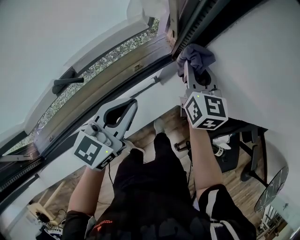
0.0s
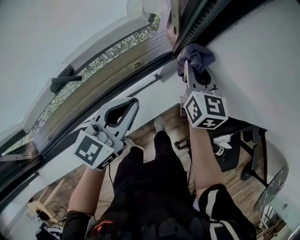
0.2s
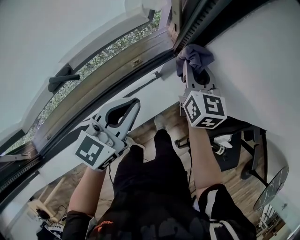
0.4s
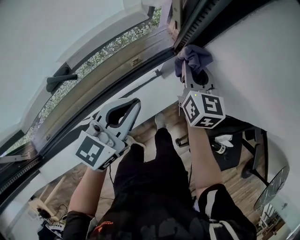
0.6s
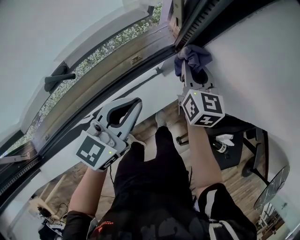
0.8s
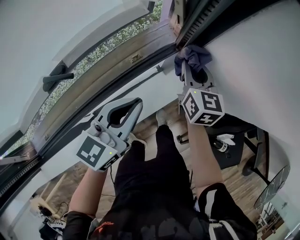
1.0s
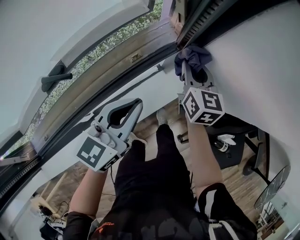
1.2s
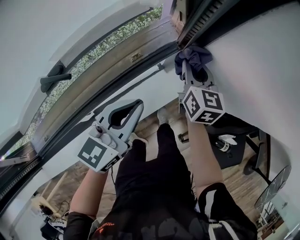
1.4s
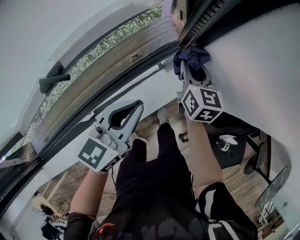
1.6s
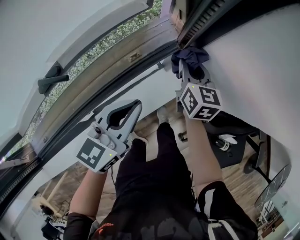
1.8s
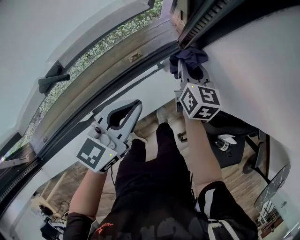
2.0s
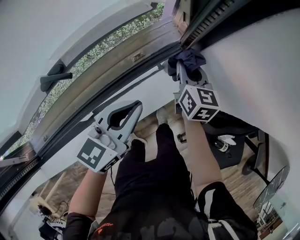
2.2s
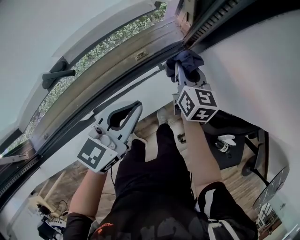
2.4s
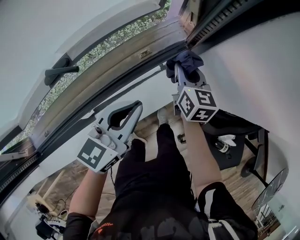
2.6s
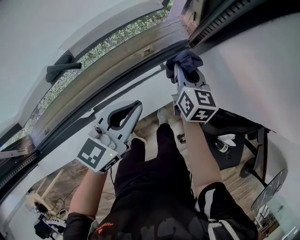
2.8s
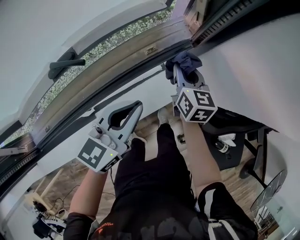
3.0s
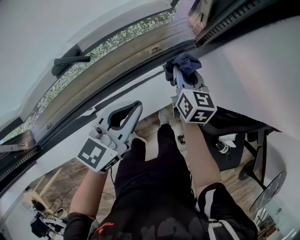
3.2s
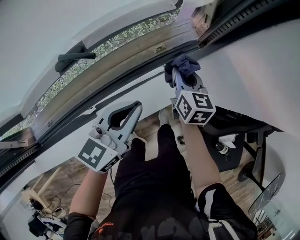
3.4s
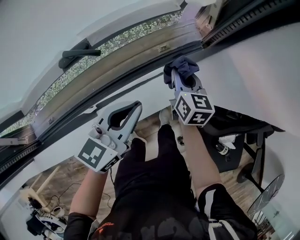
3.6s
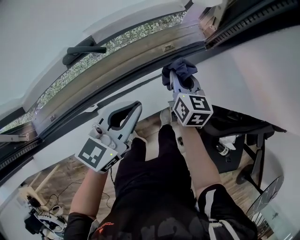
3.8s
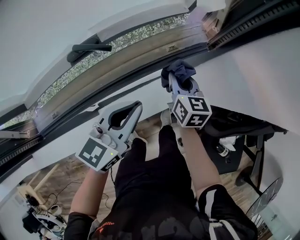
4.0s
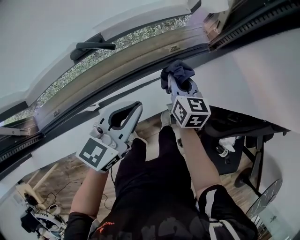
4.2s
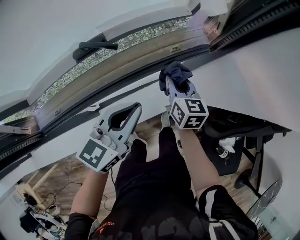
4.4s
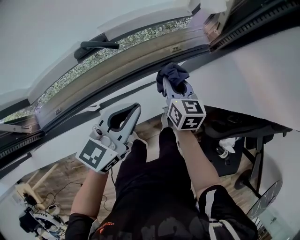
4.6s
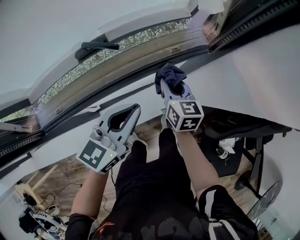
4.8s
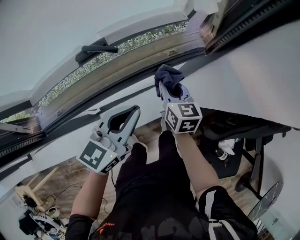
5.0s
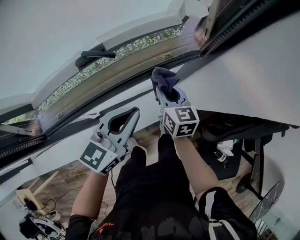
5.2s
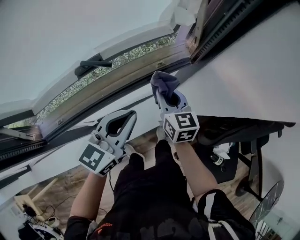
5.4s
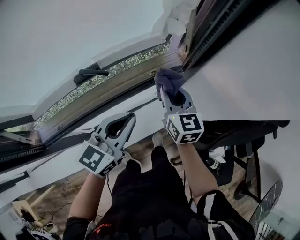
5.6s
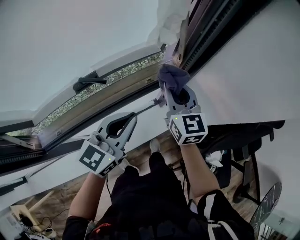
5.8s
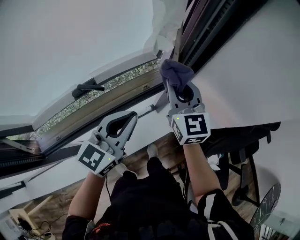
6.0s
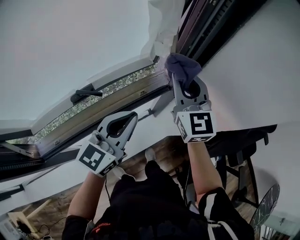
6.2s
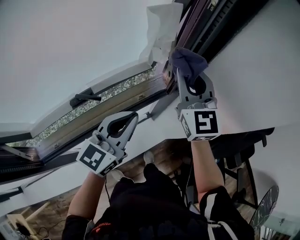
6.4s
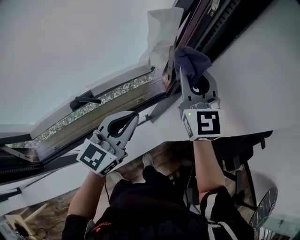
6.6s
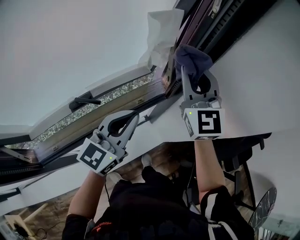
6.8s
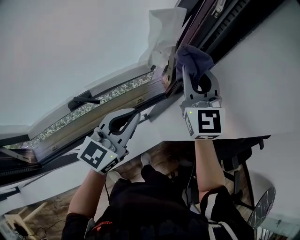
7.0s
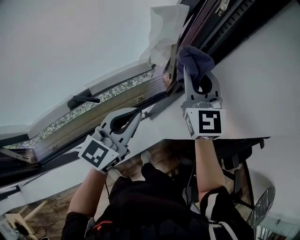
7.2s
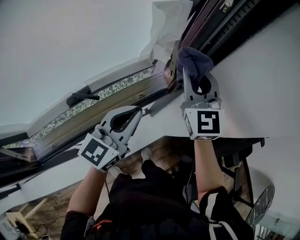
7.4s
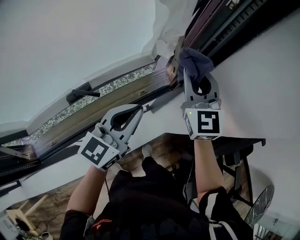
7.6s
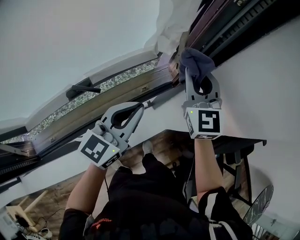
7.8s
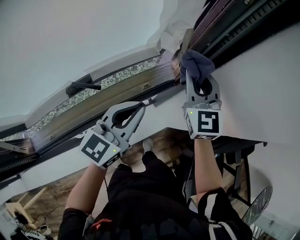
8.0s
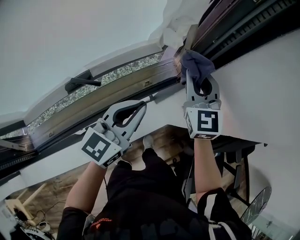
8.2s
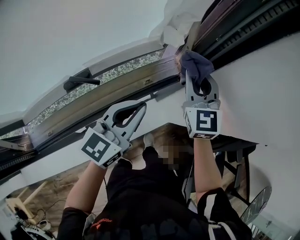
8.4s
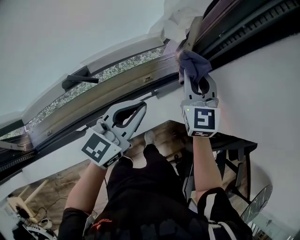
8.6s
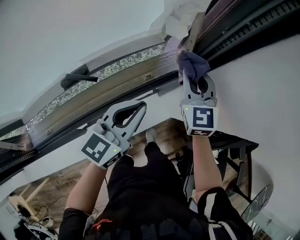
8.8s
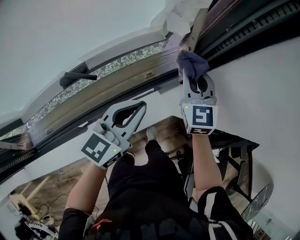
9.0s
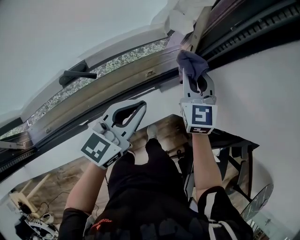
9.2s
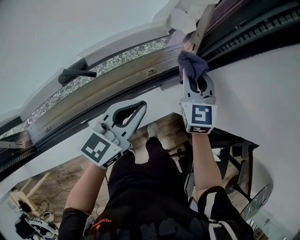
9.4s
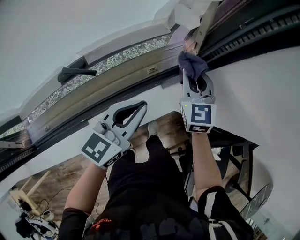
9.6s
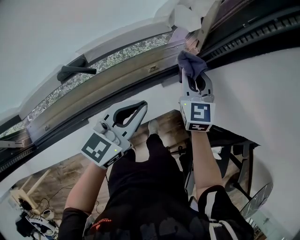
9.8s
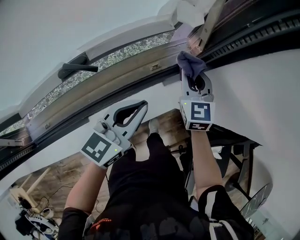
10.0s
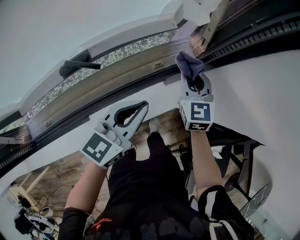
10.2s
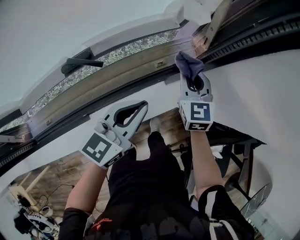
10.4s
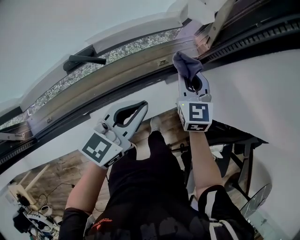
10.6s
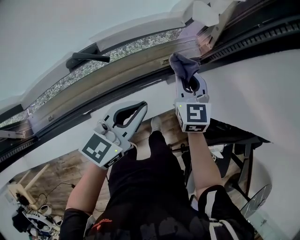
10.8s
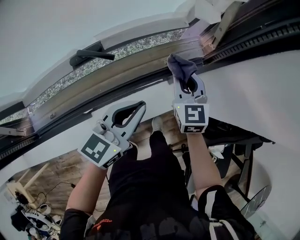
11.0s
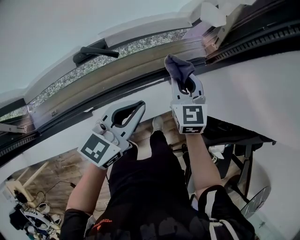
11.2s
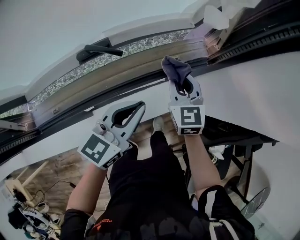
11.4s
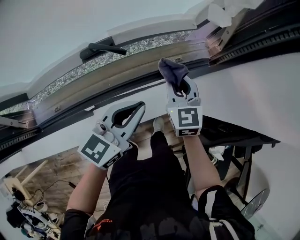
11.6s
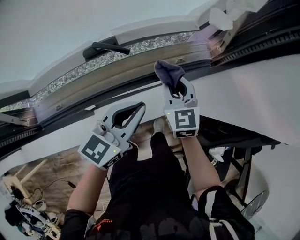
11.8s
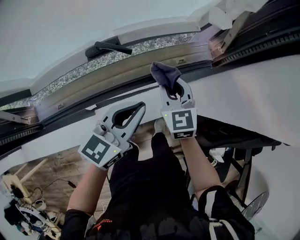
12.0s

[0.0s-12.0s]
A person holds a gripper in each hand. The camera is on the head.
0.0s to 1.6s: The left gripper goes some 10 cm downward. The right gripper shifts about 15 cm downward.
1.6s to 3.0s: The right gripper heads to the left, covering approximately 5 cm.
3.0s to 4.4s: Both grippers move to the left and backward, some 10 cm.
4.4s to 6.0s: The left gripper travels upward and to the right by about 15 cm. Meanwhile the right gripper travels upward by some 25 cm, and turns by roughly 30 degrees.
6.0s to 7.6s: Both grippers move forward, about 5 cm.
7.6s to 9.0s: The right gripper is displaced downward by roughly 15 cm, while the left gripper moves downward, approximately 10 cm.
9.0s to 10.4s: The right gripper is displaced downward by roughly 5 cm.
10.4s to 12.0s: The right gripper travels to the left and backward by some 15 cm, while the left gripper moves to the left and backward, some 10 cm.

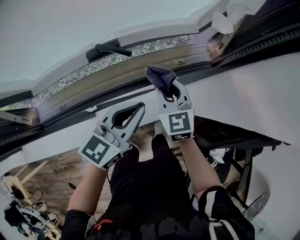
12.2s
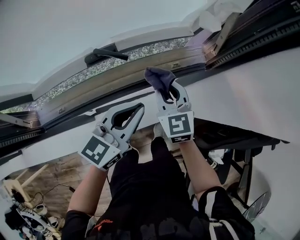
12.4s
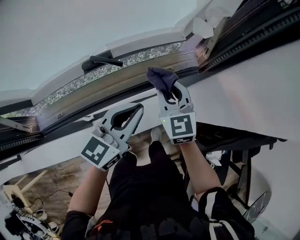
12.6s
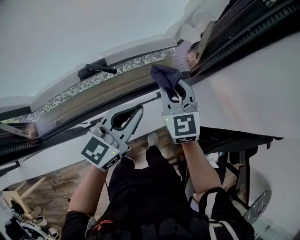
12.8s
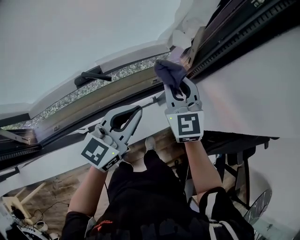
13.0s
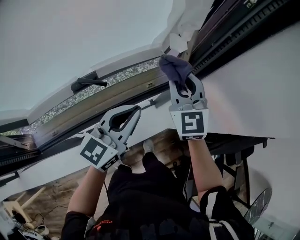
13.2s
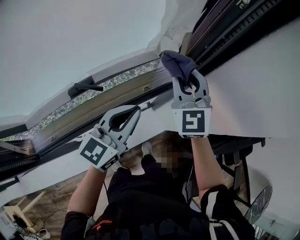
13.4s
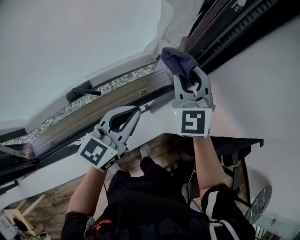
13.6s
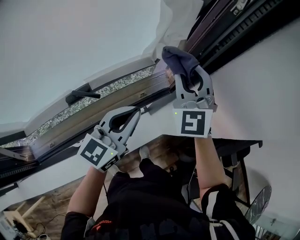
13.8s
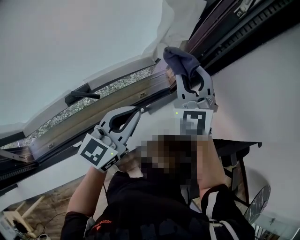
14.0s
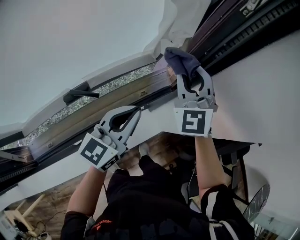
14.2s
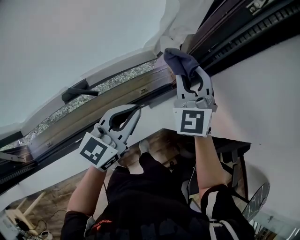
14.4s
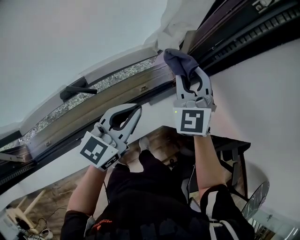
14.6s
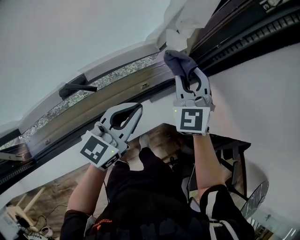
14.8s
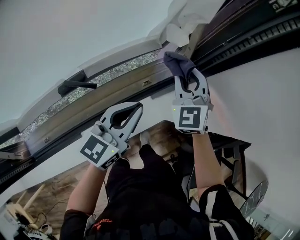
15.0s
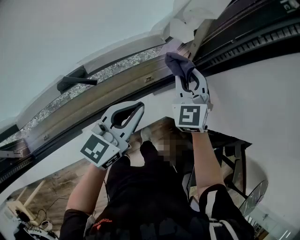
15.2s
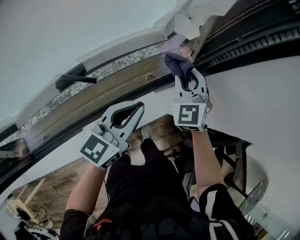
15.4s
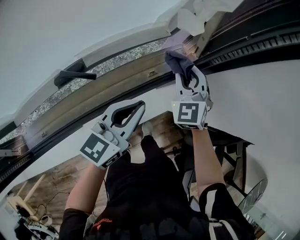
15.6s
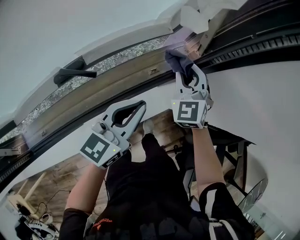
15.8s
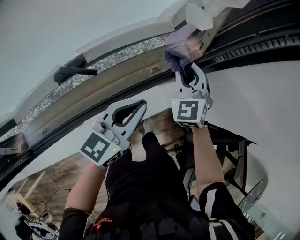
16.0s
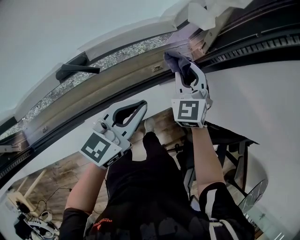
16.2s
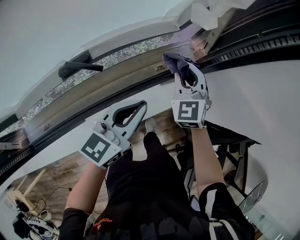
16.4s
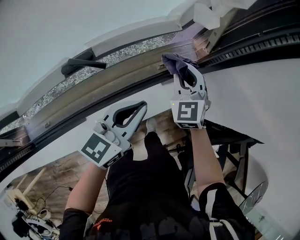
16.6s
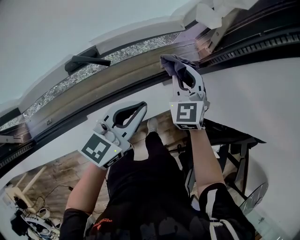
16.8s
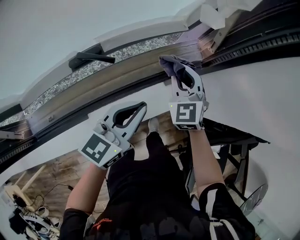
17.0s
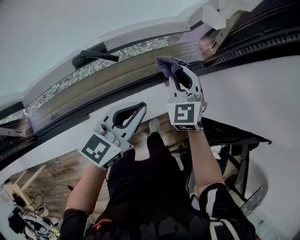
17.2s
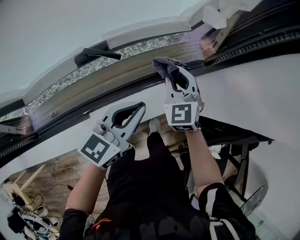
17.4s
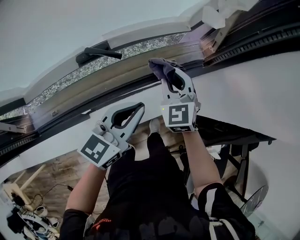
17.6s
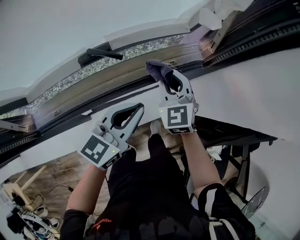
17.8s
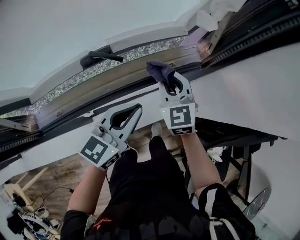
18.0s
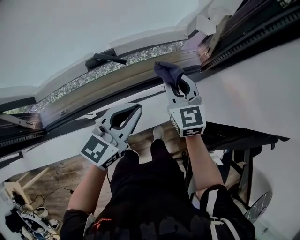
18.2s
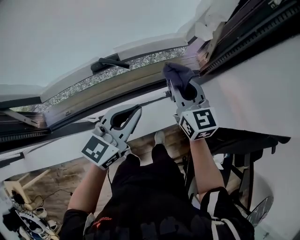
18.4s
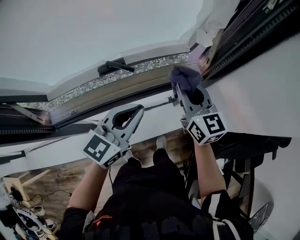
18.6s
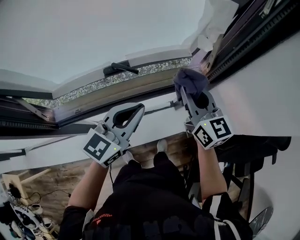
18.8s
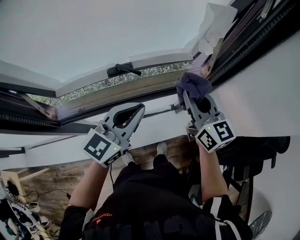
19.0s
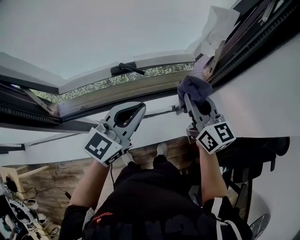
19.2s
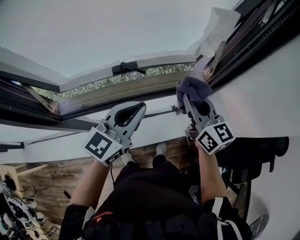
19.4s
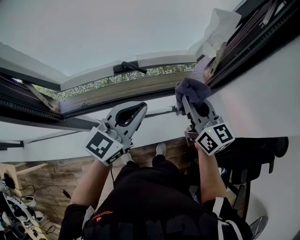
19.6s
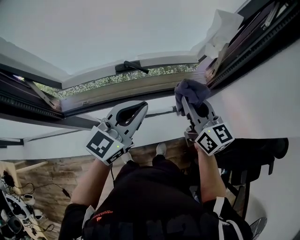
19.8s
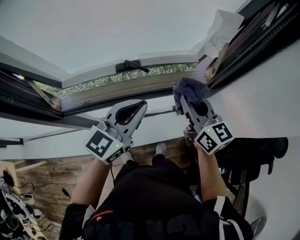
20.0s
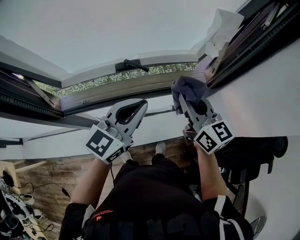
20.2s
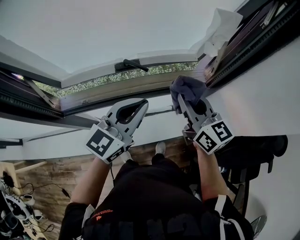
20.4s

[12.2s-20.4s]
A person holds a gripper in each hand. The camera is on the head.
12.2s to 13.8s: The left gripper is displaced upward, forward and to the right by some 15 cm, while the right gripper moves upward, to the right and forward, approximately 30 cm, and swivels roughly 40 degrees.
13.8s to 15.4s: The right gripper shifts approximately 20 cm downward. Meanwhile the left gripper travels downward by about 10 cm.
15.4s to 17.2s: The right gripper moves backward and to the left, about 10 cm; the left gripper heads backward, covering about 5 cm.
17.2s to 18.8s: The right gripper heads upward and backward, covering roughly 20 cm, and changes its angle by about 40 degrees; the left gripper shifts approximately 10 cm upward.
18.8s to 20.4s: The right gripper goes roughly 5 cm backward.

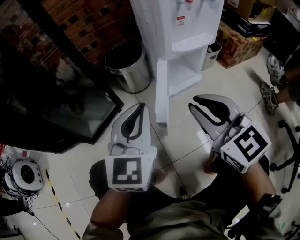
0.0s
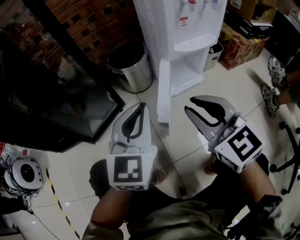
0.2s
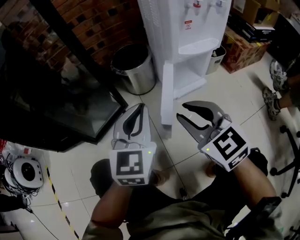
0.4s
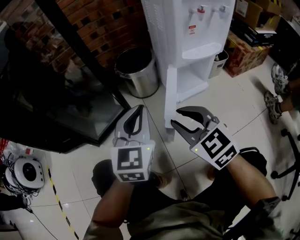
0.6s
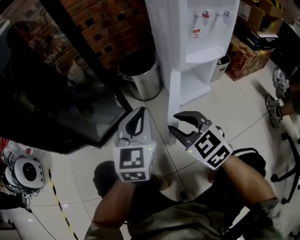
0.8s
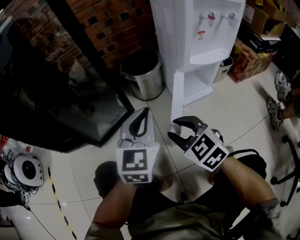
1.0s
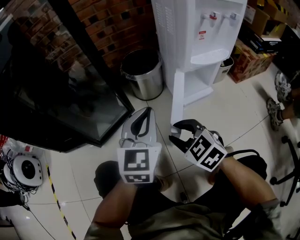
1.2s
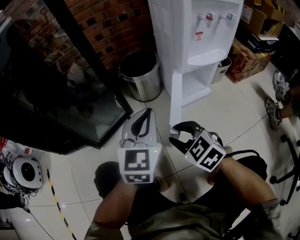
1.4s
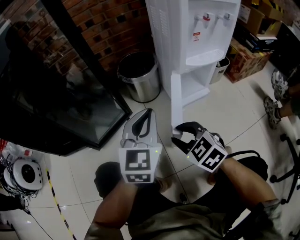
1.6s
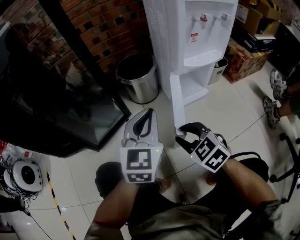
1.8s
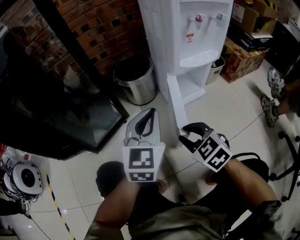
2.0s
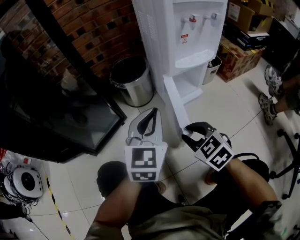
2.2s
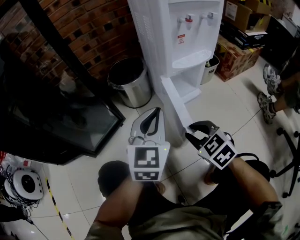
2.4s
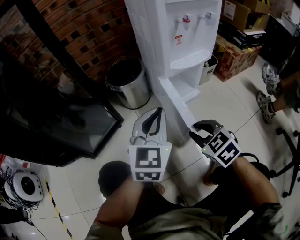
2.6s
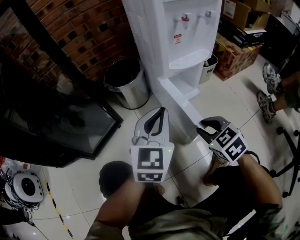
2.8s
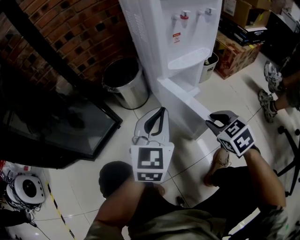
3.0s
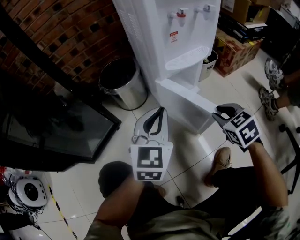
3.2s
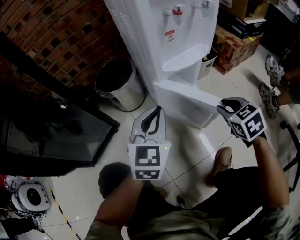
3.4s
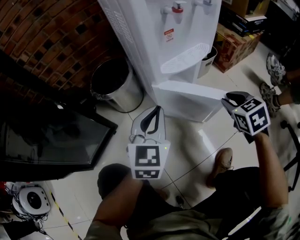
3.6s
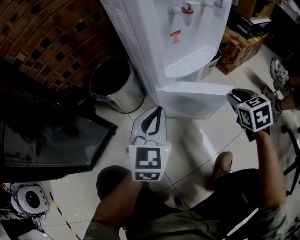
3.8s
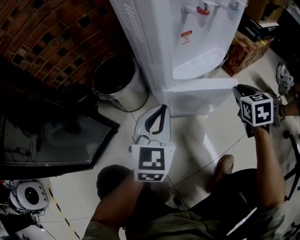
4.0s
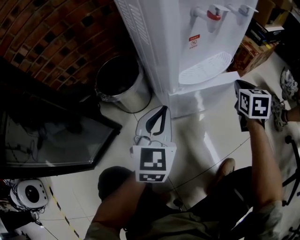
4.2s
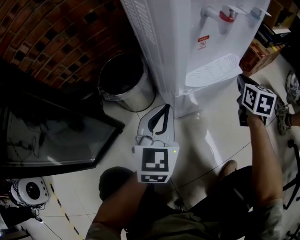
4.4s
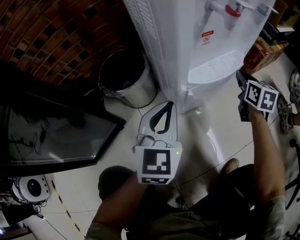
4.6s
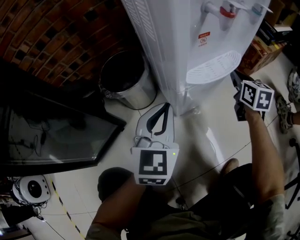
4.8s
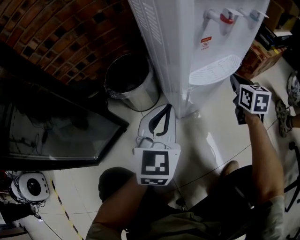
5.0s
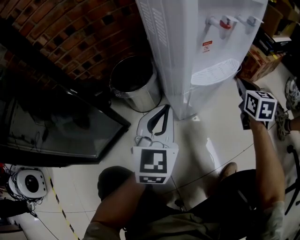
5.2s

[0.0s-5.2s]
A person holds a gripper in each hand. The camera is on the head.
0.0s to 1.8s: The left gripper ends up roughly 5 cm from where it was; the right gripper heads downward, covering approximately 15 cm, and rotates roughly 30 degrees.
1.8s to 3.4s: The right gripper moves to the right, about 25 cm, and swivels approximately 30 degrees, while the left gripper heads to the right and forward, covering about 10 cm.
3.4s to 5.2s: The right gripper is displaced forward by roughly 20 cm, turns by about 30 degrees, and closes up; the left gripper changes place by approximately 5 cm.
